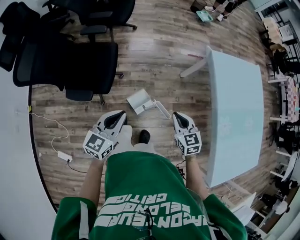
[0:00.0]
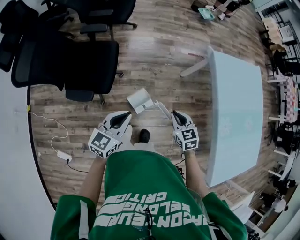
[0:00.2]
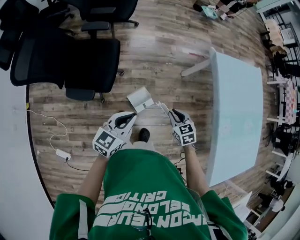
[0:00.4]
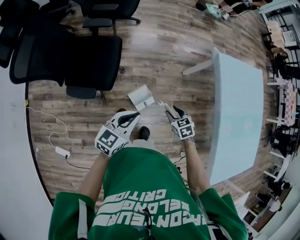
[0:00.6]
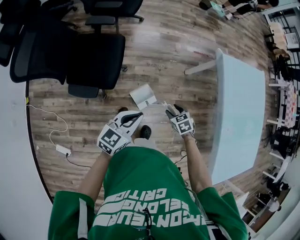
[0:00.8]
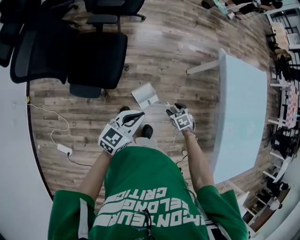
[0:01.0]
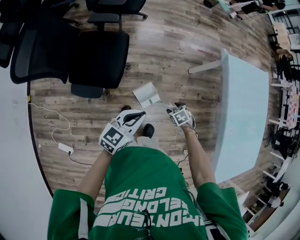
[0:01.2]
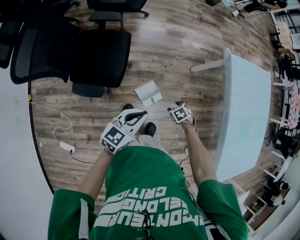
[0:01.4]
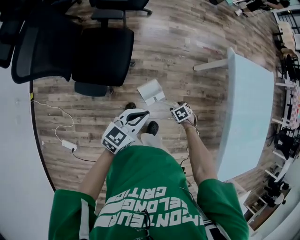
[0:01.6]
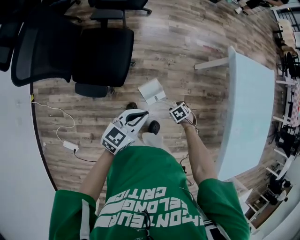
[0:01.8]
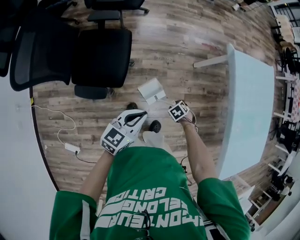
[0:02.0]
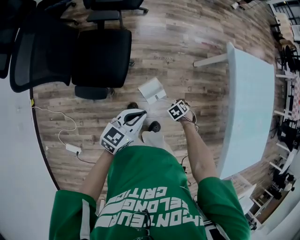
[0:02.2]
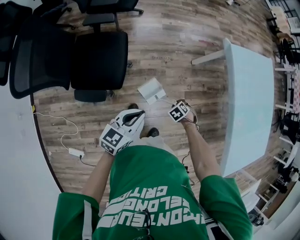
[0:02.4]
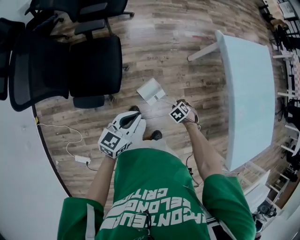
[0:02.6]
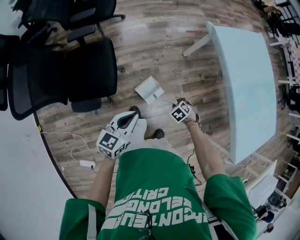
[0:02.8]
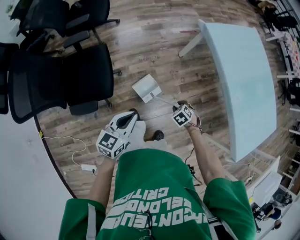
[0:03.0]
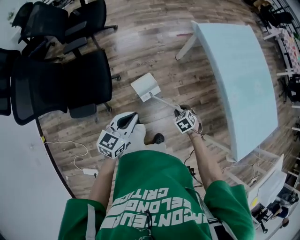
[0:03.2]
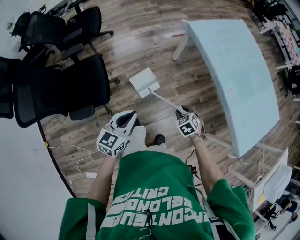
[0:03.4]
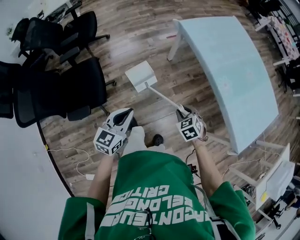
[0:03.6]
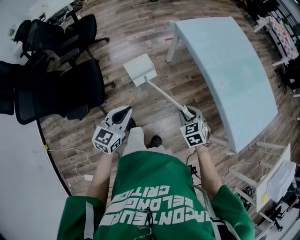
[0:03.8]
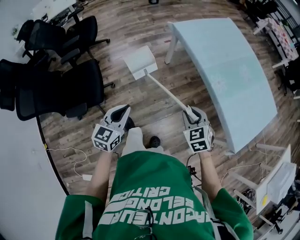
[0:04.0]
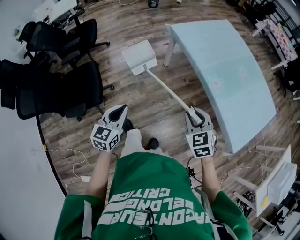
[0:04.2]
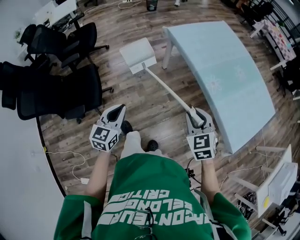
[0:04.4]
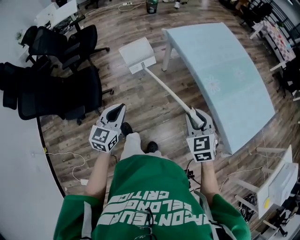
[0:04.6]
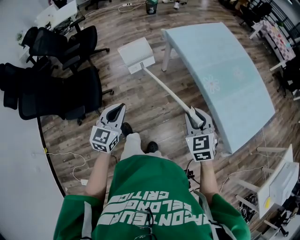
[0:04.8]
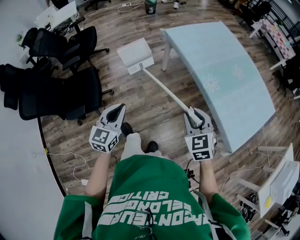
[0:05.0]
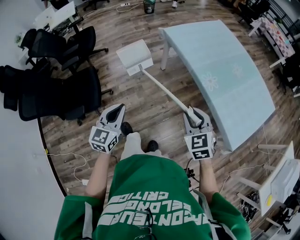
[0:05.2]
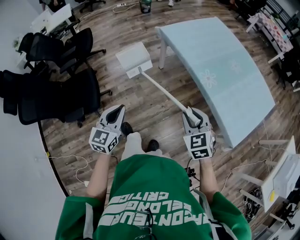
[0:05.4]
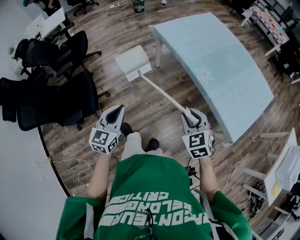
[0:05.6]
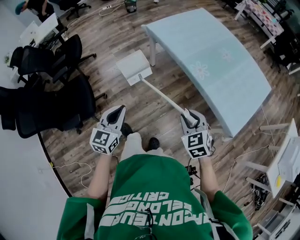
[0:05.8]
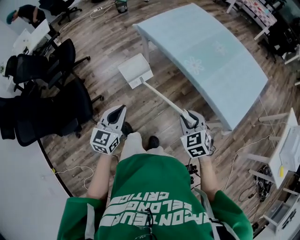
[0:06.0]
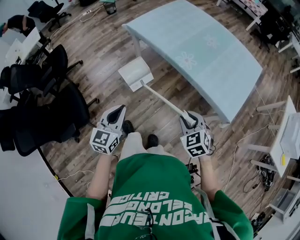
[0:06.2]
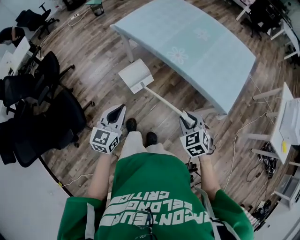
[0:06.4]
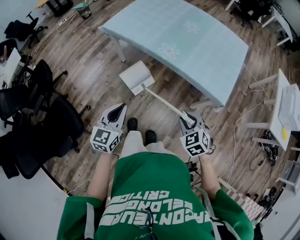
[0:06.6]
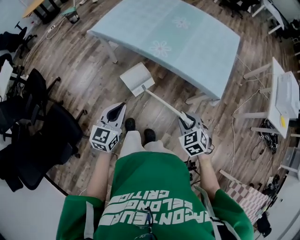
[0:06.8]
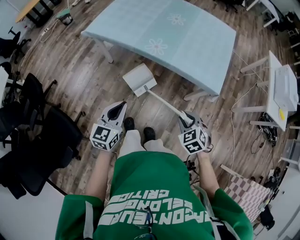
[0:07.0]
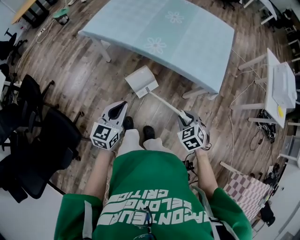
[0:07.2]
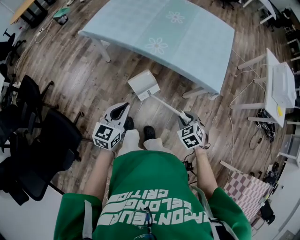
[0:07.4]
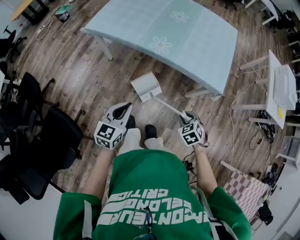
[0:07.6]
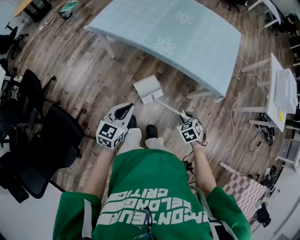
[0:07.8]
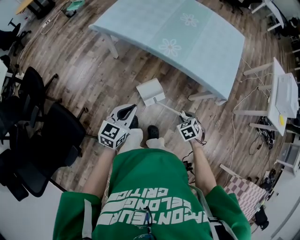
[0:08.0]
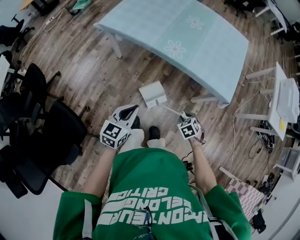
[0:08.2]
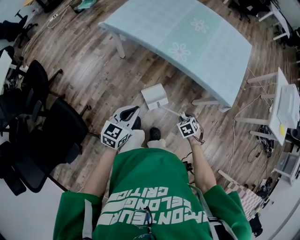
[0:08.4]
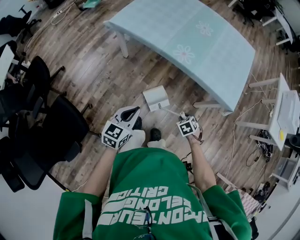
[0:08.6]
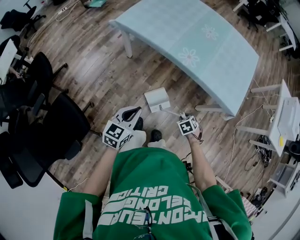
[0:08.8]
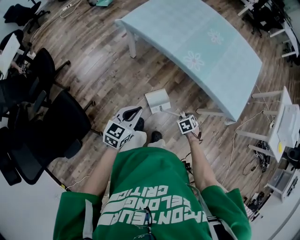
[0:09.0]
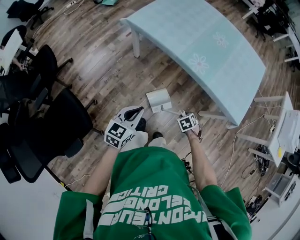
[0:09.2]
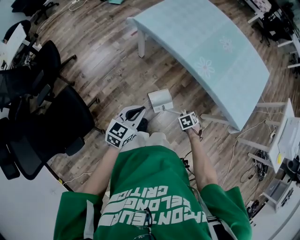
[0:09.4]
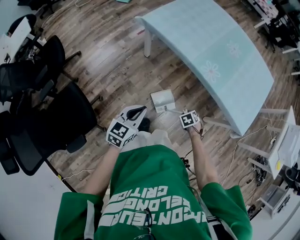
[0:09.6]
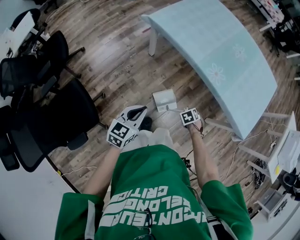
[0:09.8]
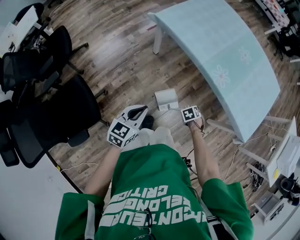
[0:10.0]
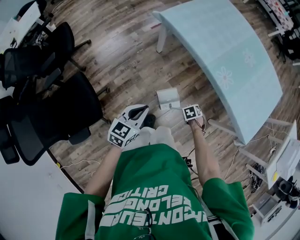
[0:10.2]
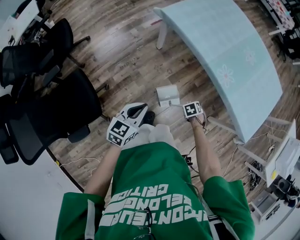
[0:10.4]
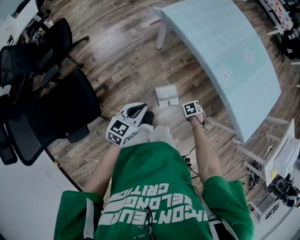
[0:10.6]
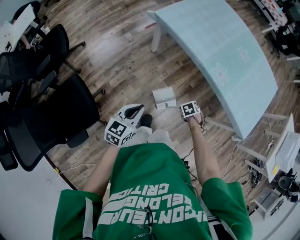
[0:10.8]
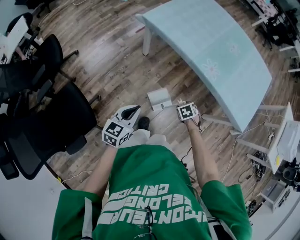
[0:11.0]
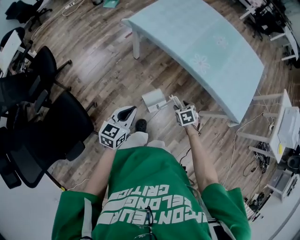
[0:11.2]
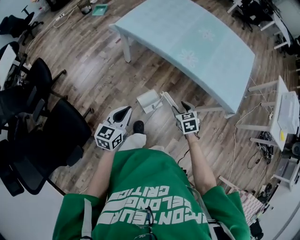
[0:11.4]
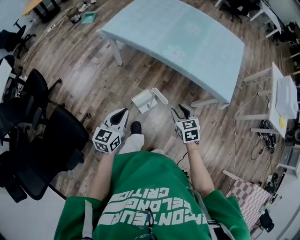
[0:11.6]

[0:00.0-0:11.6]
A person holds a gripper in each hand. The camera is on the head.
0:00.0 to 0:01.4: The right gripper goes some 25 cm downward, angles its fingers downward, by some 50 degrees, and opens. Meanwhile the left gripper goes approximately 5 cm downward.
0:01.4 to 0:02.8: The right gripper closes.
0:02.8 to 0:04.4: The right gripper heads upward, covering some 35 cm, and tilts its fingers approximately 50 degrees upward. The left gripper shifts by approximately 20 cm.
0:04.4 to 0:05.8: The left gripper heads to the right, covering approximately 5 cm. The right gripper moves to the right and backward, roughly 10 cm.
0:05.8 to 0:07.2: The left gripper ends up some 15 cm from where it was, and changes its angle by approximately 30 degrees. The right gripper ends up approximately 15 cm from where it was, and rotates about 30 degrees.
0:07.2 to 0:08.8: The left gripper moves approximately 10 cm; the right gripper heads downward, covering about 15 cm.
0:08.8 to 0:10.2: The right gripper moves about 20 cm. Meanwhile the left gripper shifts by roughly 15 cm.
0:10.2 to 0:11.6: The left gripper moves about 10 cm, while the right gripper is displaced upward by about 25 cm, and tips its fingers upward by some 40 degrees.

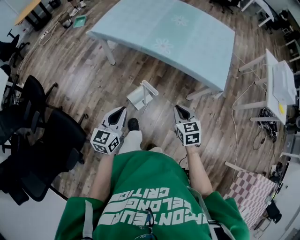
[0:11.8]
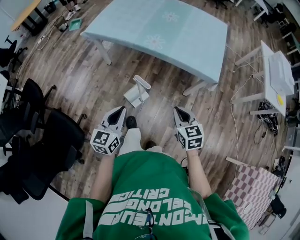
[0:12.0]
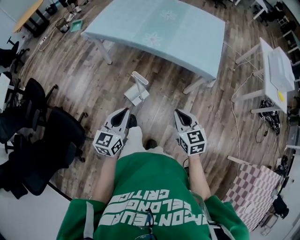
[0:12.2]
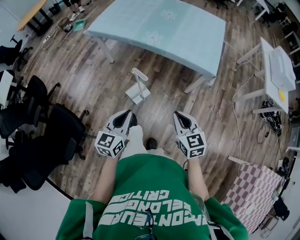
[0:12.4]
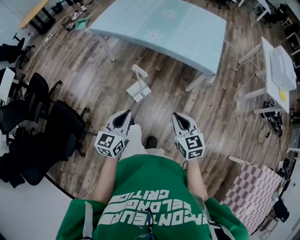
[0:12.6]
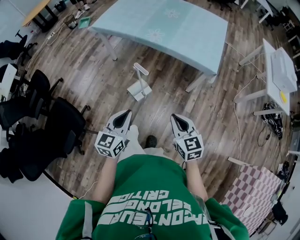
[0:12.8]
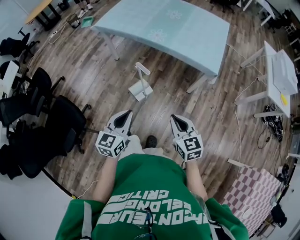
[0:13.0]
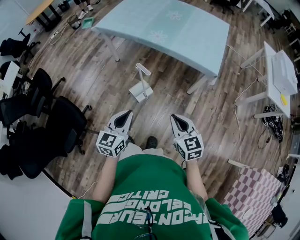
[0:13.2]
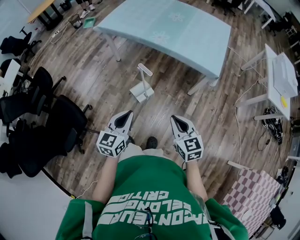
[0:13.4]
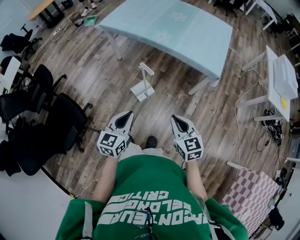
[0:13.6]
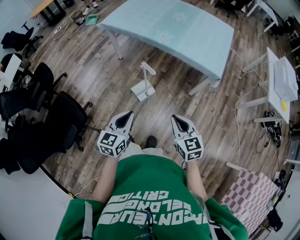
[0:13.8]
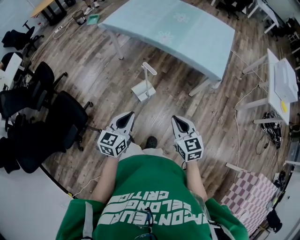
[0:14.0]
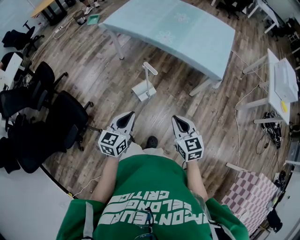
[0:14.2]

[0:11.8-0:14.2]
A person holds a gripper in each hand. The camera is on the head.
0:11.8 to 0:13.0: The left gripper is displaced backward and to the right by approximately 20 cm; the right gripper is displaced backward by approximately 20 cm.
0:13.0 to 0:14.2: The grippers stay close to where they were, moving slightly.

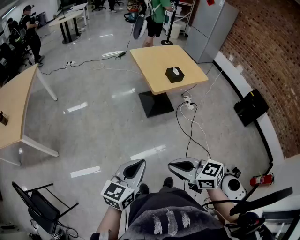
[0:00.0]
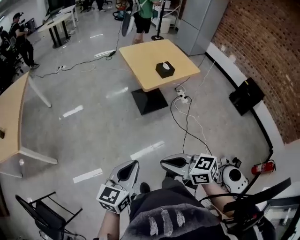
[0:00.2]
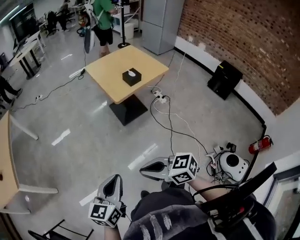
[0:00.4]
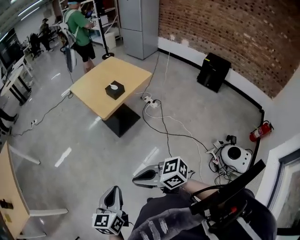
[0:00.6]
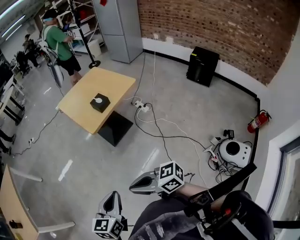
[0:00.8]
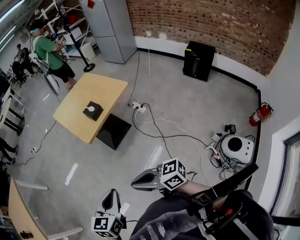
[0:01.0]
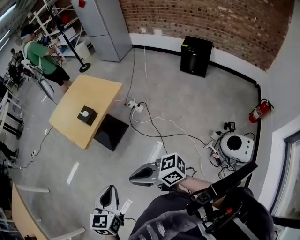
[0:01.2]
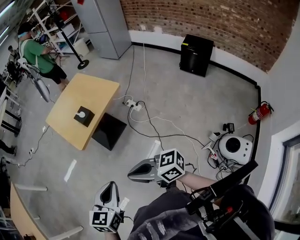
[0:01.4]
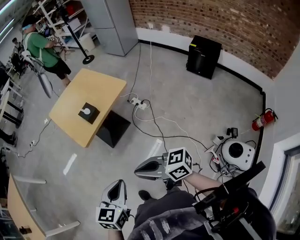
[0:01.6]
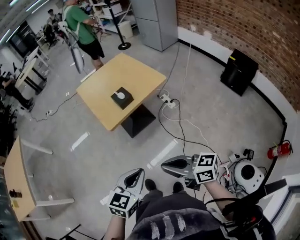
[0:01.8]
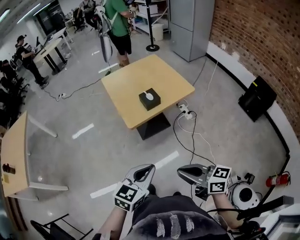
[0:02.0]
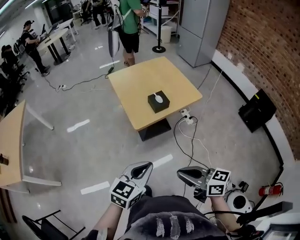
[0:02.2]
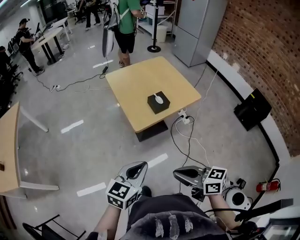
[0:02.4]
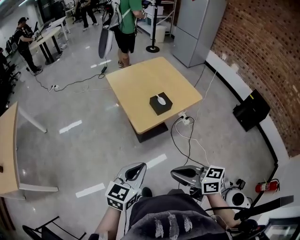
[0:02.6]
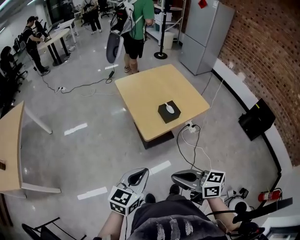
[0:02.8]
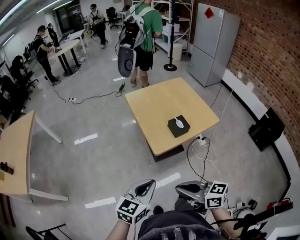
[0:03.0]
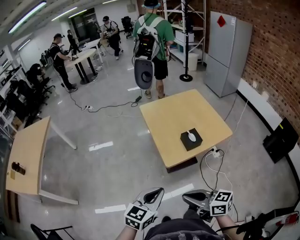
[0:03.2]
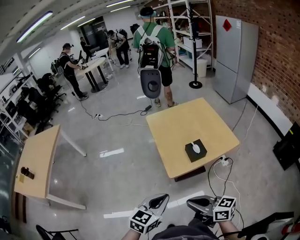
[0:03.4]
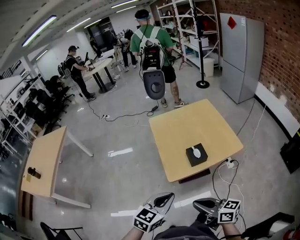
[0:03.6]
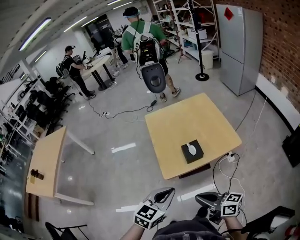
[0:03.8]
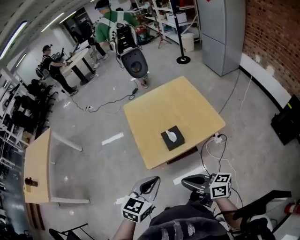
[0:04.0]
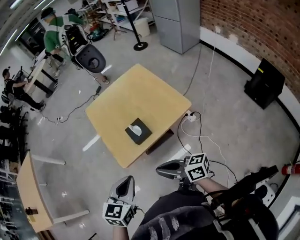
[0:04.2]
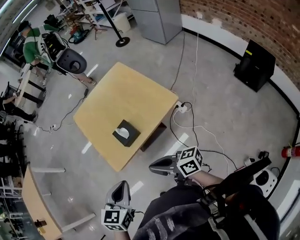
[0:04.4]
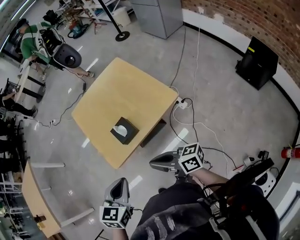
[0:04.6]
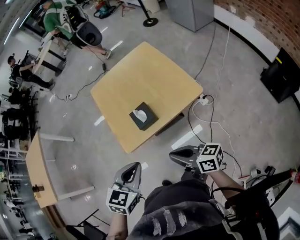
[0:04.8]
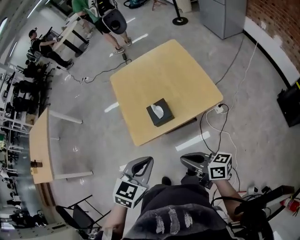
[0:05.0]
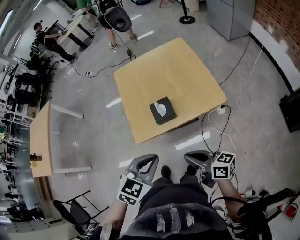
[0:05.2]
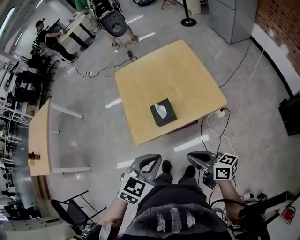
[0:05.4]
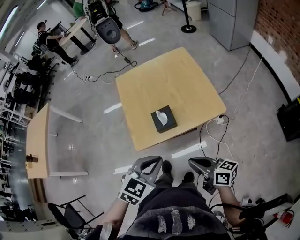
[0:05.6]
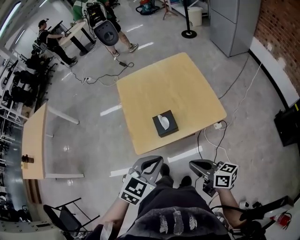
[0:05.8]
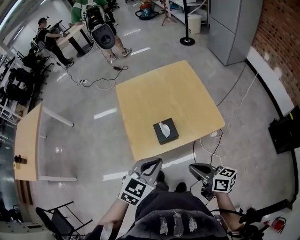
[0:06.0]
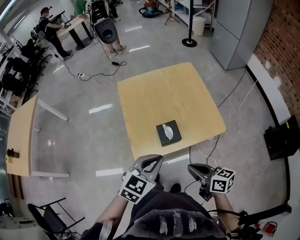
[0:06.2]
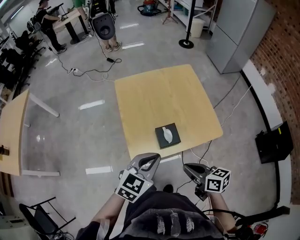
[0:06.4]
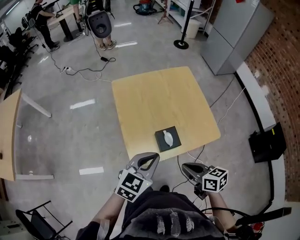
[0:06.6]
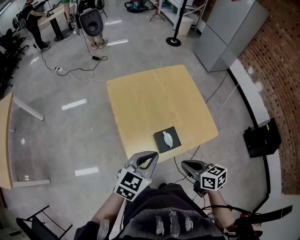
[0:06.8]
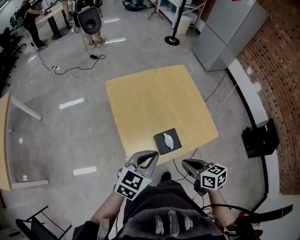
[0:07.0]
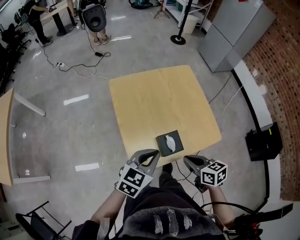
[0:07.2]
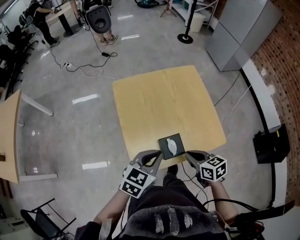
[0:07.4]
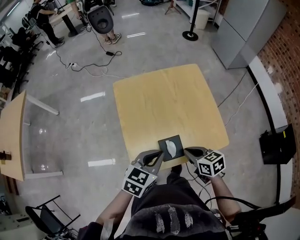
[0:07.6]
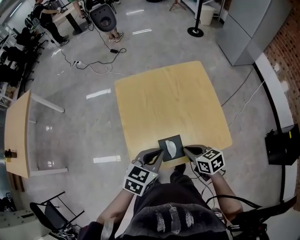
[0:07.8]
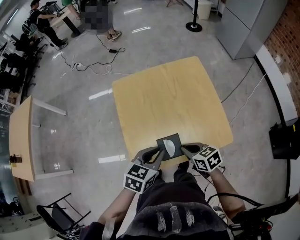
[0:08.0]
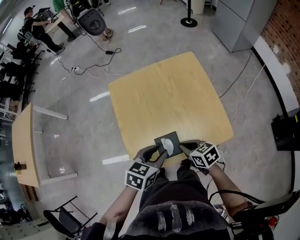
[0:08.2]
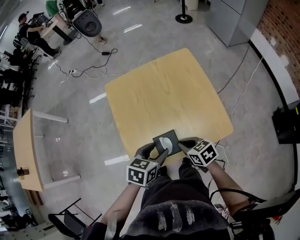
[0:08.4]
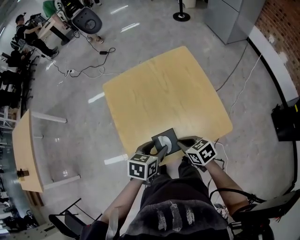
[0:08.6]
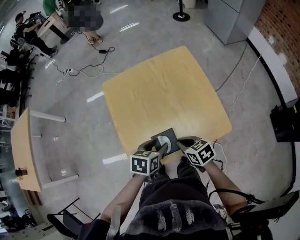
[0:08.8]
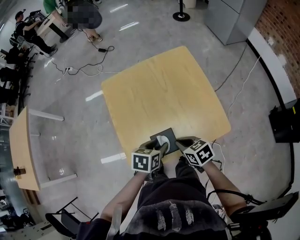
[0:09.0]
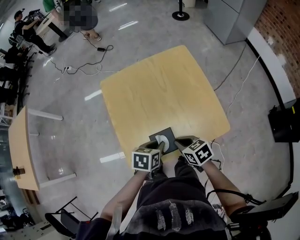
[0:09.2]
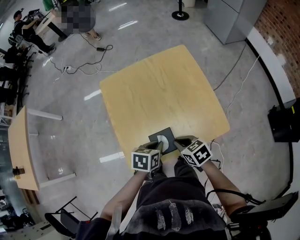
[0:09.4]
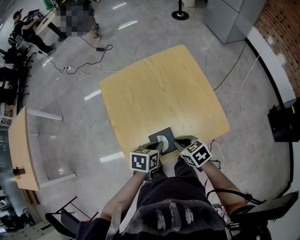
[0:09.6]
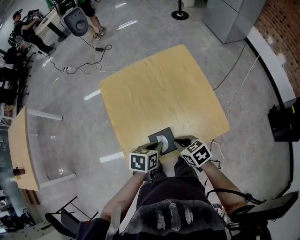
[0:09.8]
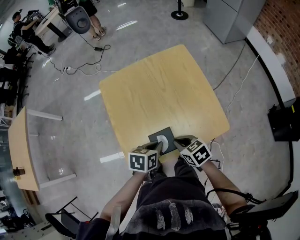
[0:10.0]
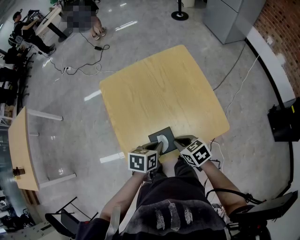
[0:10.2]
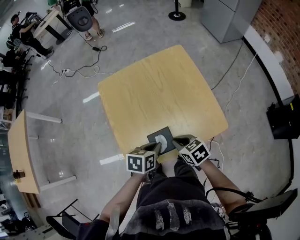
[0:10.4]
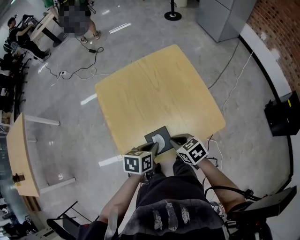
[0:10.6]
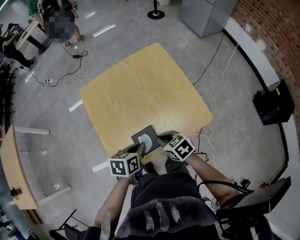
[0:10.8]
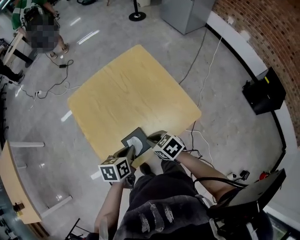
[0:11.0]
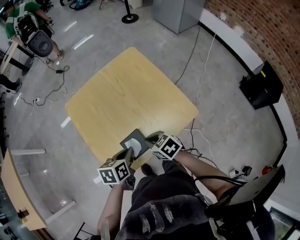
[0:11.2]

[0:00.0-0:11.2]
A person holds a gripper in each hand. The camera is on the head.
0:00.0 to 0:01.6: The two grippers go some 30 cm to the right. The left gripper swivels about 30 degrees. The right gripper swivels about 30 degrees.
0:01.6 to 0:03.2: The grippers both shift forward and to the left by roughly 25 cm.
0:03.2 to 0:04.8: Both grippers travel together to the right, some 25 cm. The left gripper swivels some 20 degrees.
0:04.8 to 0:06.4: Both grippers move forward, roughly 10 cm.
0:06.4 to 0:08.0: The two grippers go roughly 15 cm forward and downward. The left gripper swivels roughly 20 degrees, while the right gripper swivels some 20 degrees.
0:08.0 to 0:09.6: The left gripper heads downward, covering approximately 10 cm, rotates some 20 degrees, and opens and closes again.
0:09.6 to 0:11.2: There are only small adjustments of the grippers.
